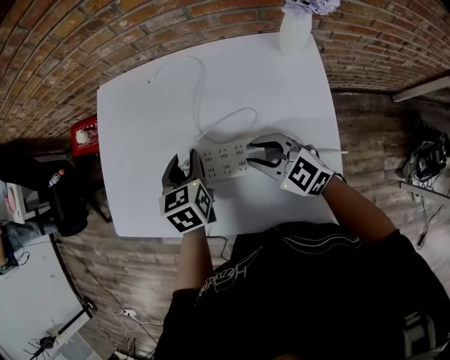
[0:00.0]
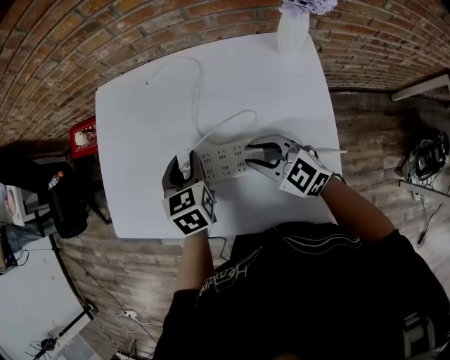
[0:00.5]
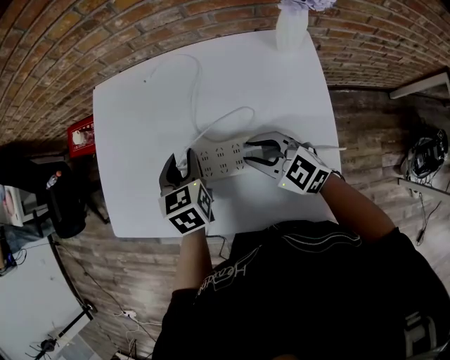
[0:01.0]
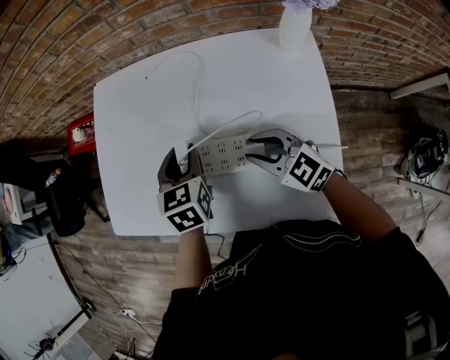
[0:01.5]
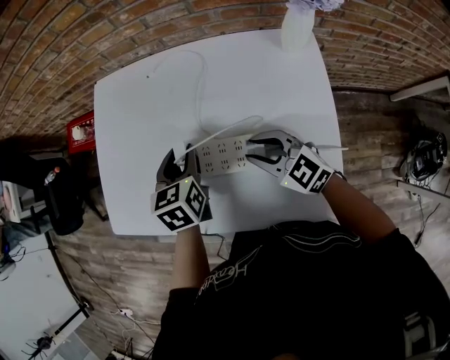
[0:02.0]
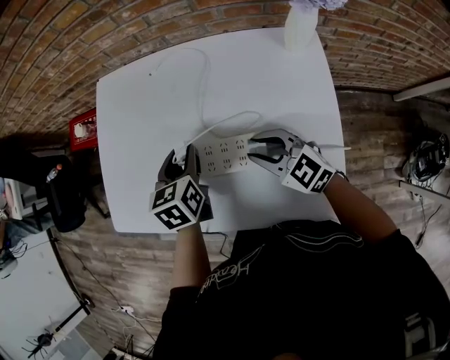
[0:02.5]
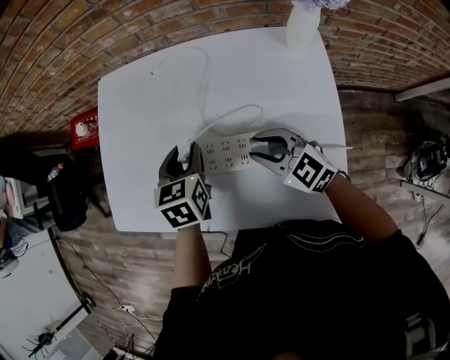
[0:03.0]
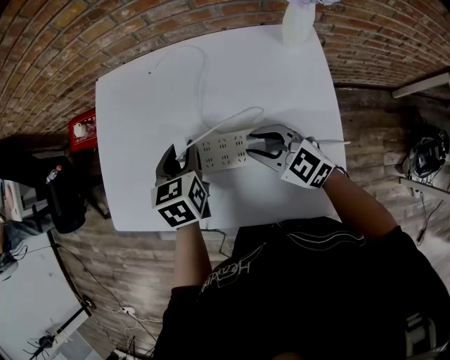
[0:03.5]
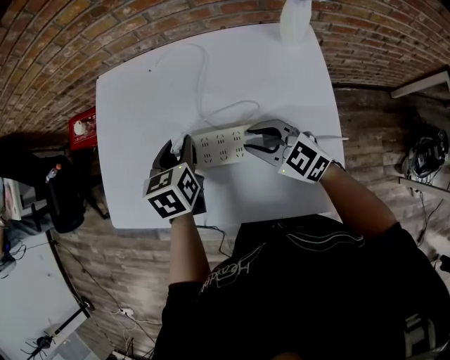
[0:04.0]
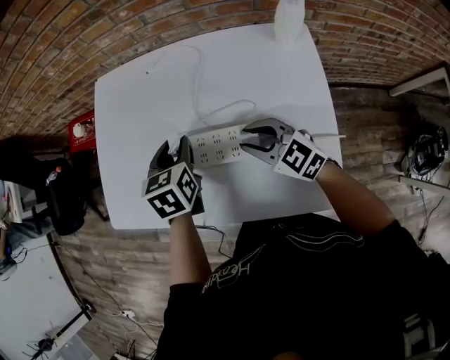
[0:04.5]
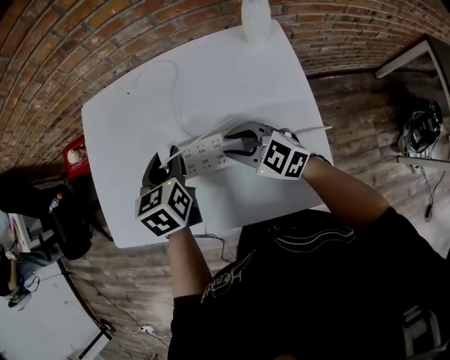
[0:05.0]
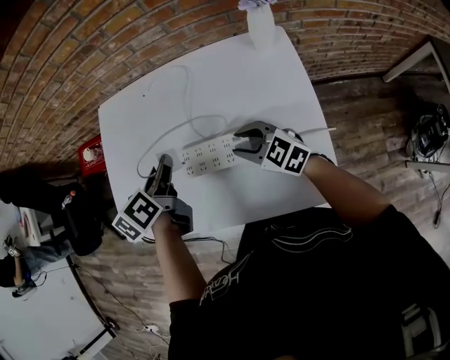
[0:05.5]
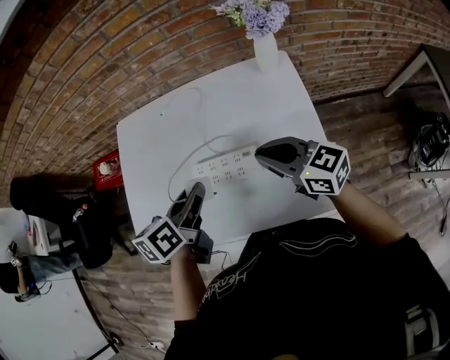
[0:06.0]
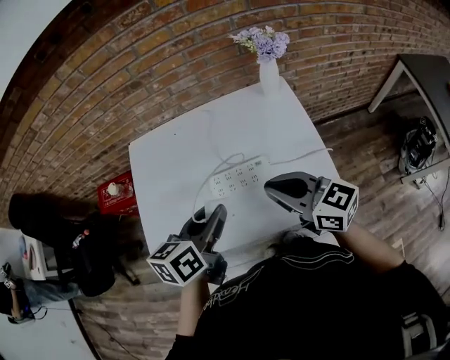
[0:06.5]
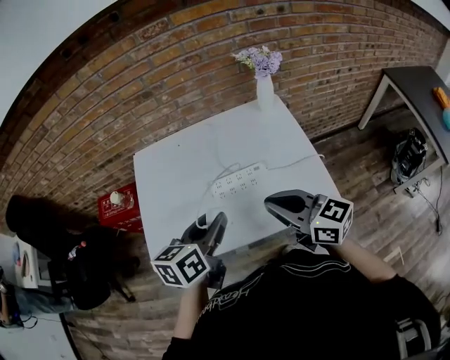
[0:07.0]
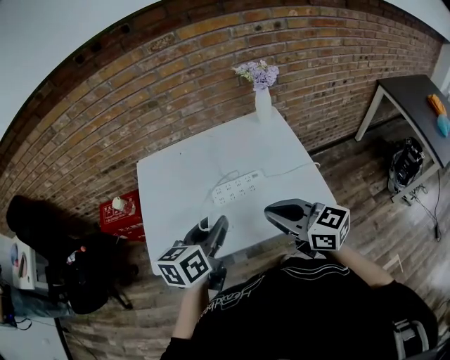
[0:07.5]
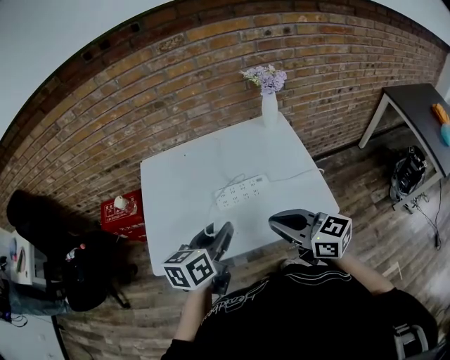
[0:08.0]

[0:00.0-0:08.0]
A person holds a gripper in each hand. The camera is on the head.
0:00.0 to 0:04.0: The grippers make only small movements.
0:04.0 to 0:06.0: The left gripper shifts about 15 cm upward and backward, and changes its angle by about 30 degrees, while the right gripper goes about 15 cm upward, swivels approximately 30 degrees, and closes.
0:06.0 to 0:08.0: The right gripper is displaced backward, to the left and upward by some 20 cm. The left gripper goes roughly 15 cm backward, upward and to the left, and turns by some 20 degrees.

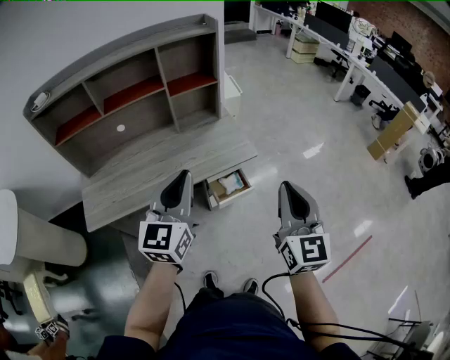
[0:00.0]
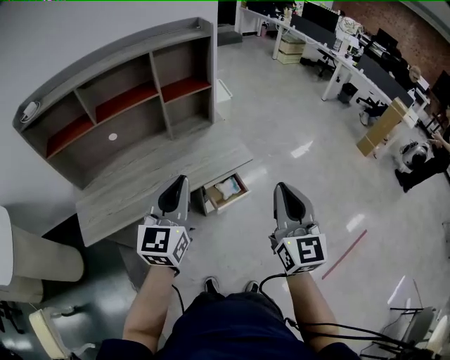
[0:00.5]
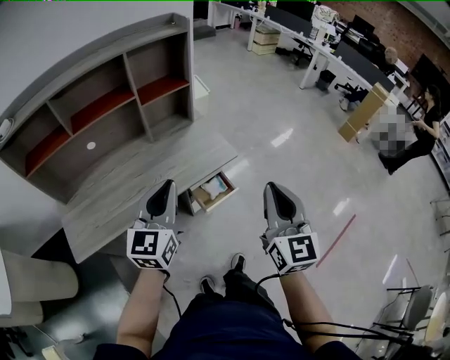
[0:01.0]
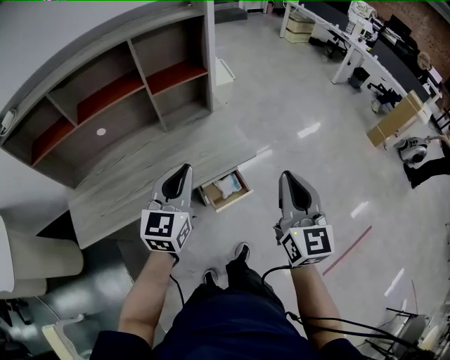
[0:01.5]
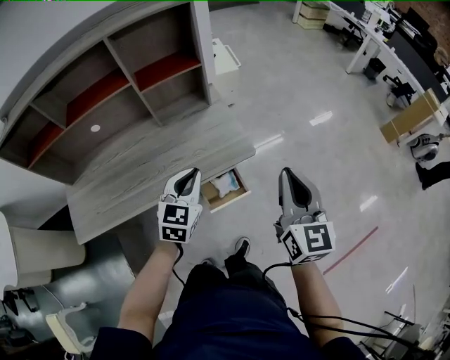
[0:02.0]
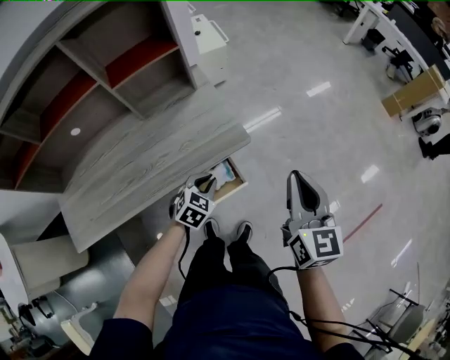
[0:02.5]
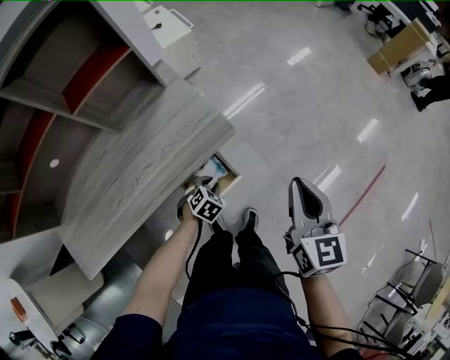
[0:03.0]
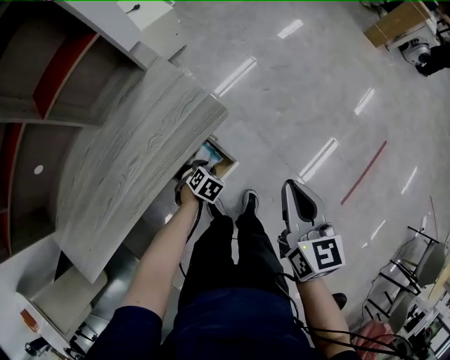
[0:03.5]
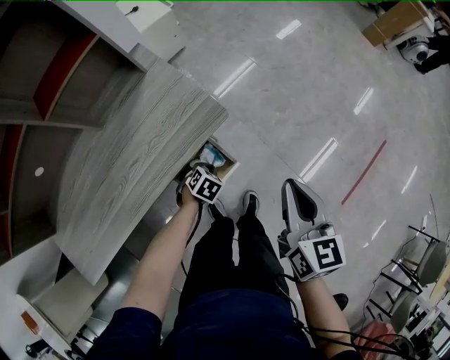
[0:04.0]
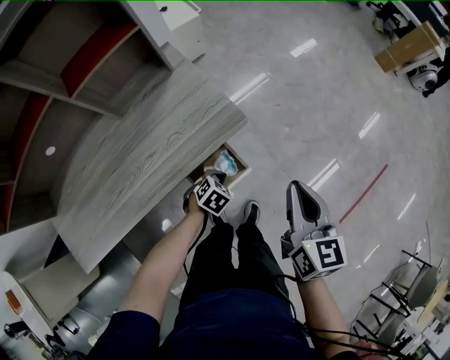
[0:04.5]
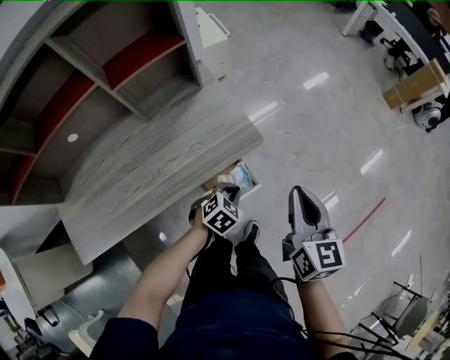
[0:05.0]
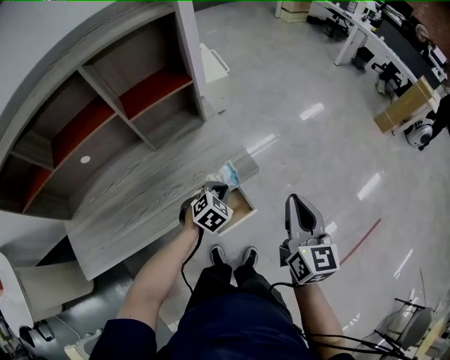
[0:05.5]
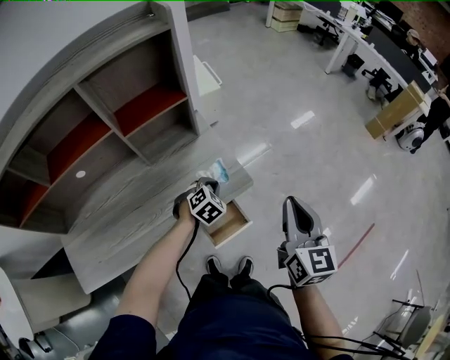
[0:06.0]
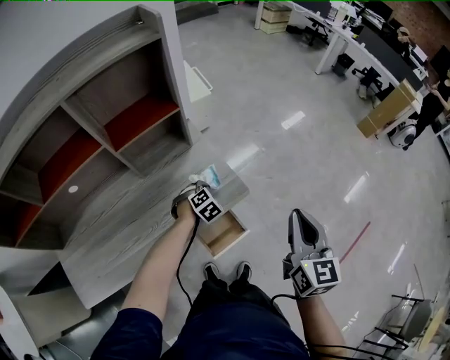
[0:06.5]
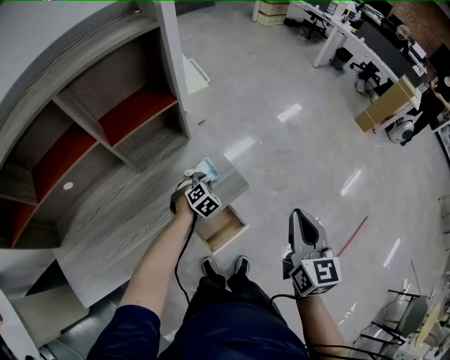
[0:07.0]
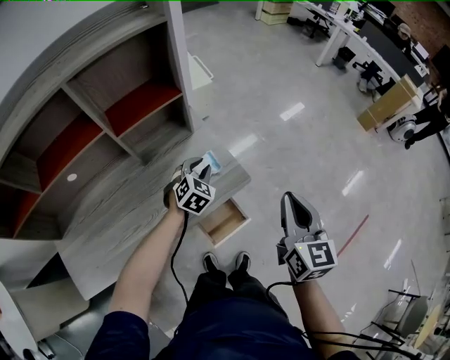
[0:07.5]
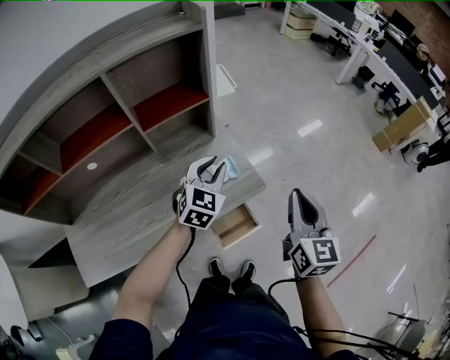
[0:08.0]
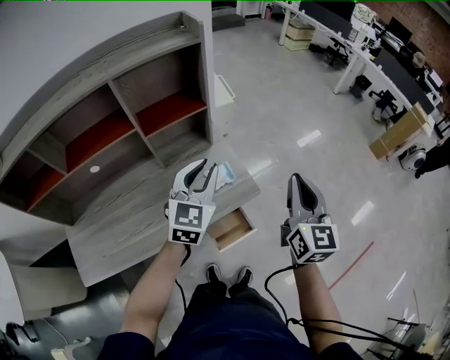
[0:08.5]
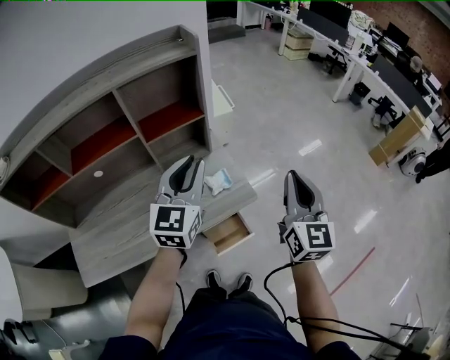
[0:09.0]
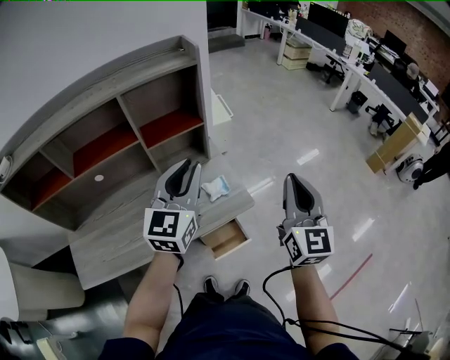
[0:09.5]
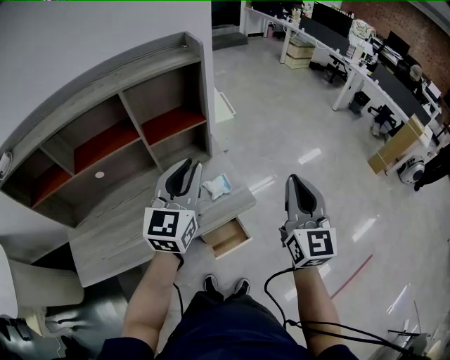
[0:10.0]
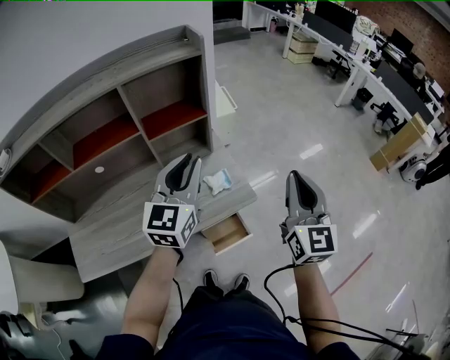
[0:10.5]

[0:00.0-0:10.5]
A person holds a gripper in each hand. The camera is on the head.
0:00.0 to 0:02.0: The right gripper shifts about 20 cm forward and downward; the left gripper moves downward and forward, some 25 cm, and swivels some 30 degrees.
0:02.0 to 0:04.0: The right gripper travels downward by approximately 15 cm, and swivels some 30 degrees. The left gripper moves downward, approximately 40 cm, and tilts its fingers some 50 degrees downward.
0:04.0 to 0:06.5: The right gripper travels upward and forward by about 15 cm, while the left gripper moves forward, upward and to the left, approximately 25 cm, and turns by approximately 30 degrees.
0:06.5 to 0:08.5: The left gripper goes about 35 cm upward, and angles its fingers upward, by roughly 50 degrees, while the right gripper travels upward by roughly 5 cm.
0:08.5 to 0:10.5: The right gripper heads upward, covering approximately 5 cm, while the left gripper moves upward, roughly 10 cm.

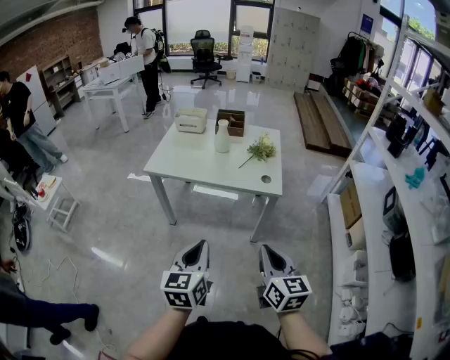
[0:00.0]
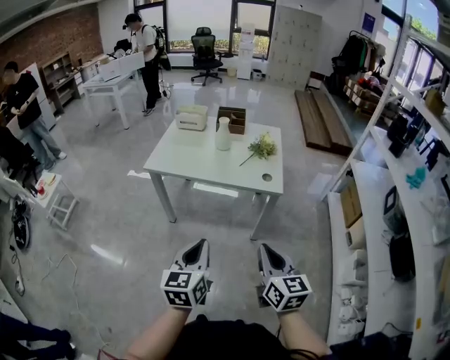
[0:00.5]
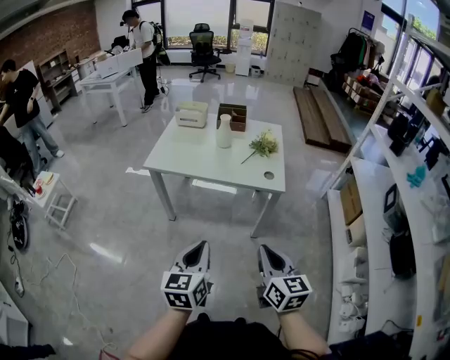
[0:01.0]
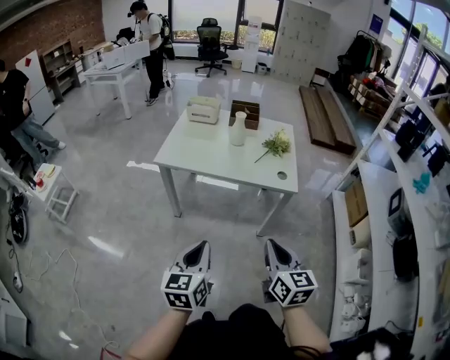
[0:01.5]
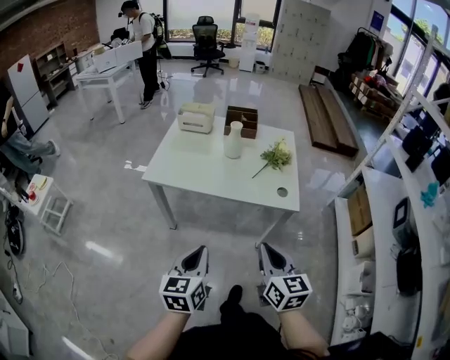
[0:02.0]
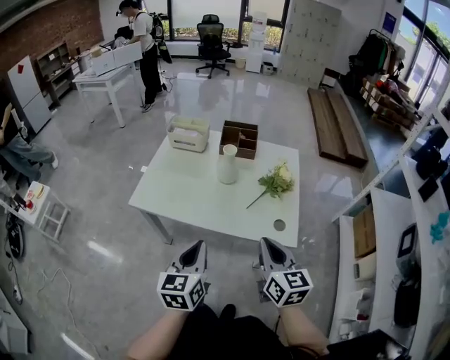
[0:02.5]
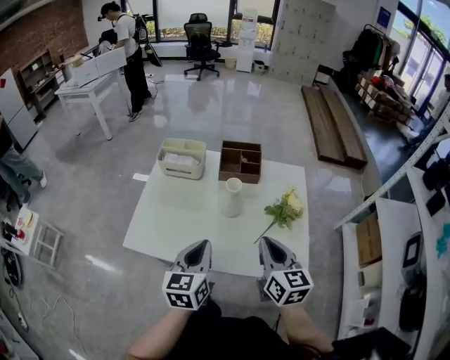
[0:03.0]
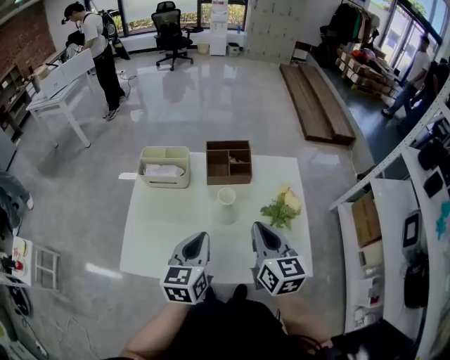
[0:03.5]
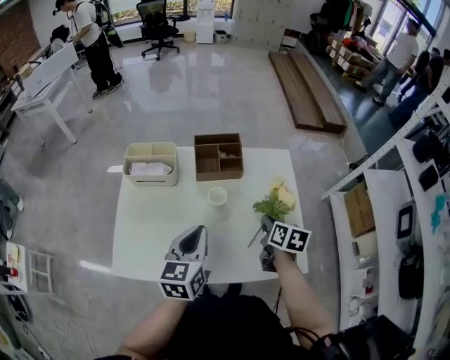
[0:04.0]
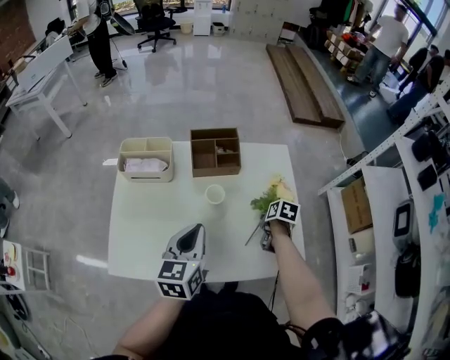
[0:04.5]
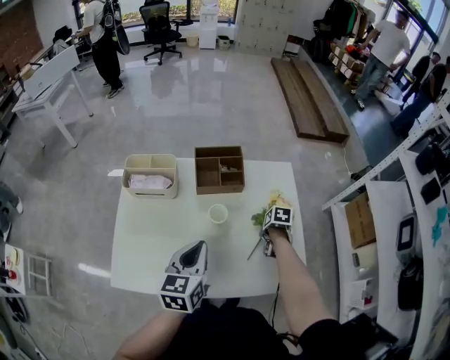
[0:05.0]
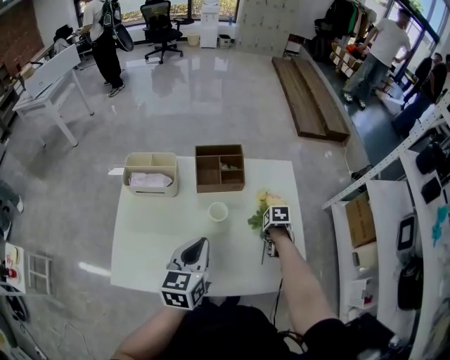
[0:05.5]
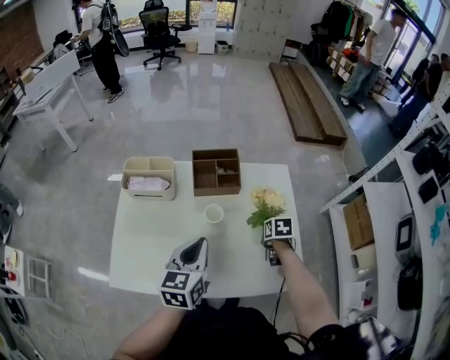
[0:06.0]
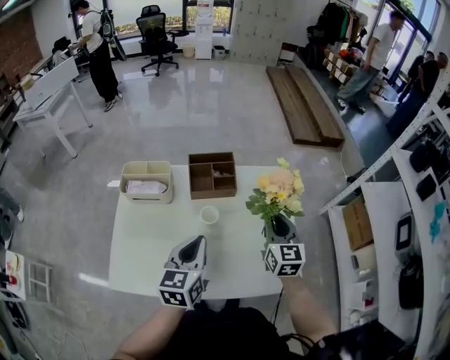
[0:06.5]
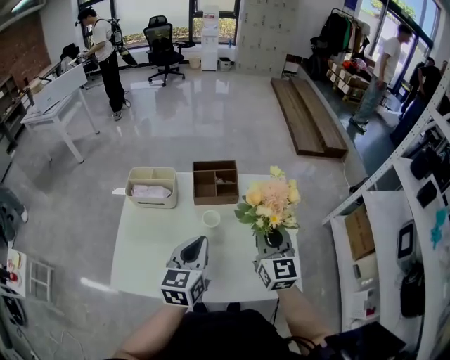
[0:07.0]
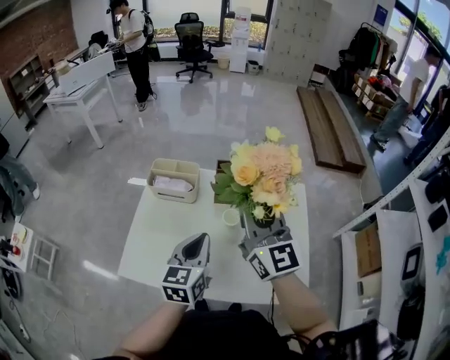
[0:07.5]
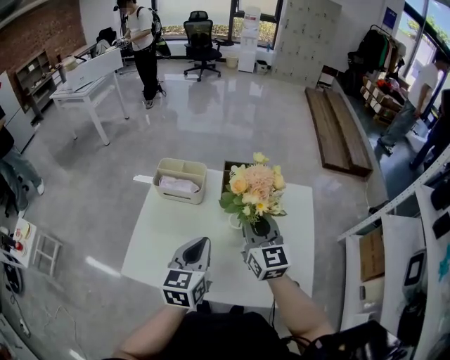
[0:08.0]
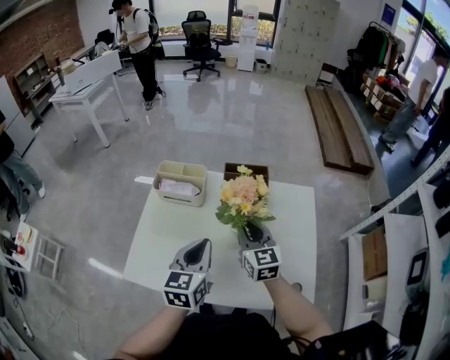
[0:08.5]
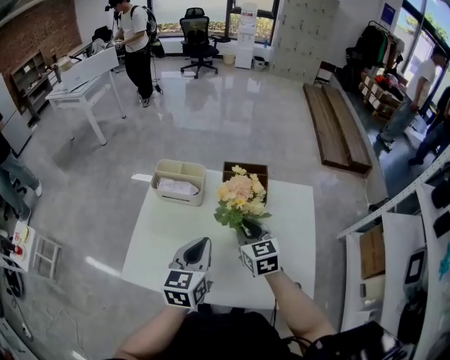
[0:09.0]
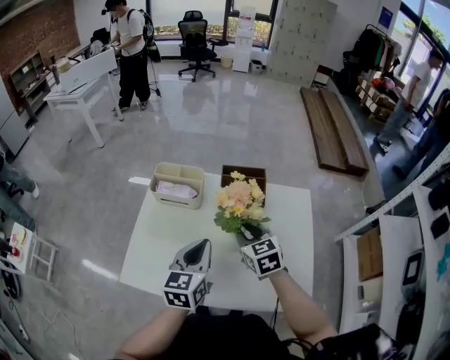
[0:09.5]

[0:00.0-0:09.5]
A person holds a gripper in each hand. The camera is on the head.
0:00.0 to 0:02.0: The right gripper heads forward and to the left, covering about 15 cm, while the left gripper moves forward, to the left and downward, about 15 cm.
0:02.0 to 0:04.0: The pair of grippers is taken forward, roughly 50 cm. The right gripper rotates approximately 40 degrees.
0:04.0 to 0:05.5: The right gripper shifts roughly 15 cm downward, and points its fingers approximately 40 degrees further downward.
0:05.5 to 0:07.5: The left gripper moves about 5 cm. Meanwhile the right gripper shifts about 40 cm upward, and points its fingers some 90 degrees further upward.
0:07.5 to 0:09.5: The right gripper moves downward, some 20 cm, and tilts its fingers about 50 degrees downward.
